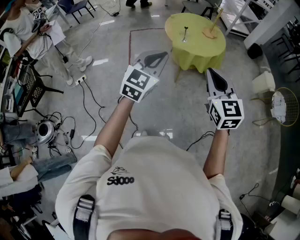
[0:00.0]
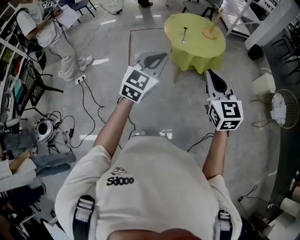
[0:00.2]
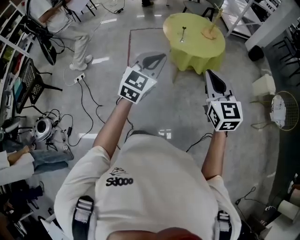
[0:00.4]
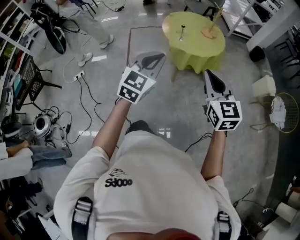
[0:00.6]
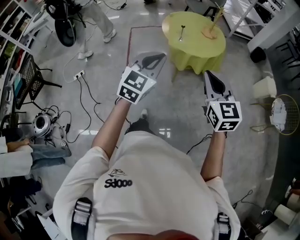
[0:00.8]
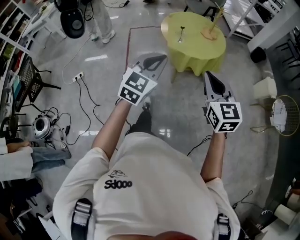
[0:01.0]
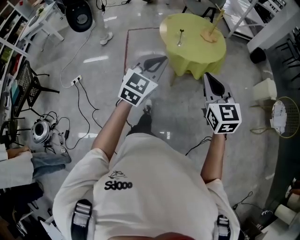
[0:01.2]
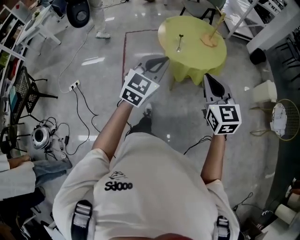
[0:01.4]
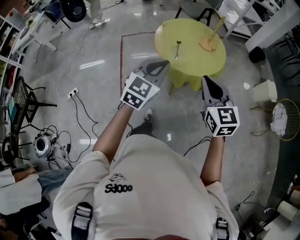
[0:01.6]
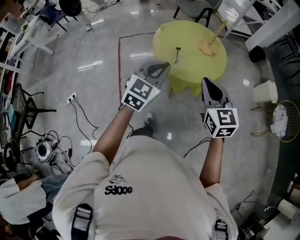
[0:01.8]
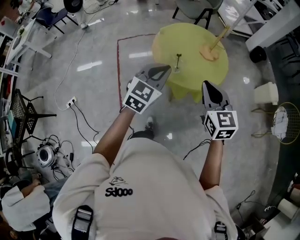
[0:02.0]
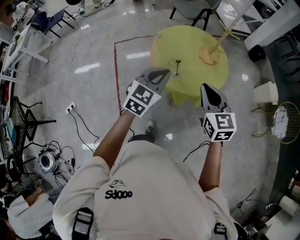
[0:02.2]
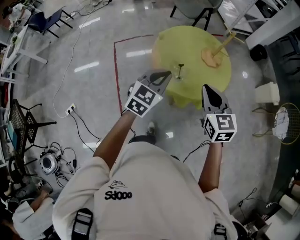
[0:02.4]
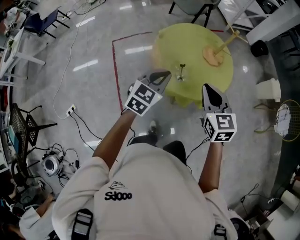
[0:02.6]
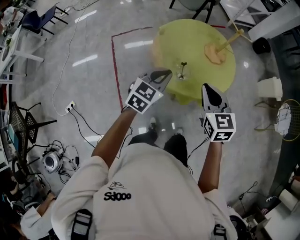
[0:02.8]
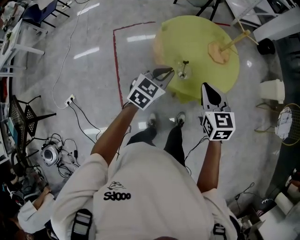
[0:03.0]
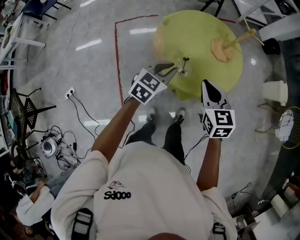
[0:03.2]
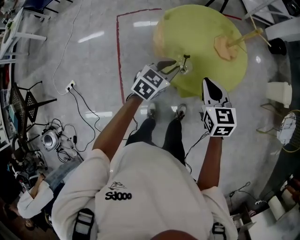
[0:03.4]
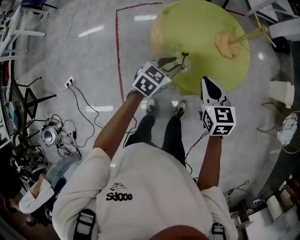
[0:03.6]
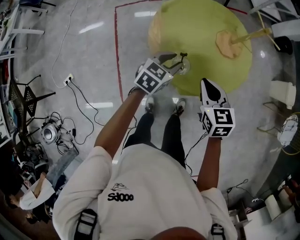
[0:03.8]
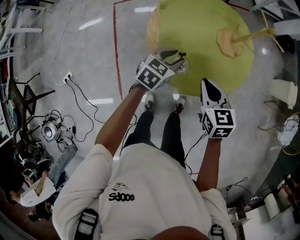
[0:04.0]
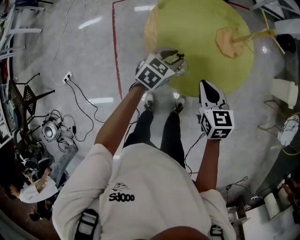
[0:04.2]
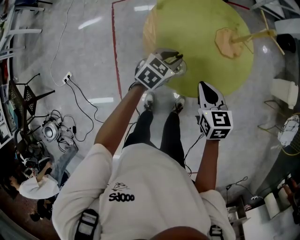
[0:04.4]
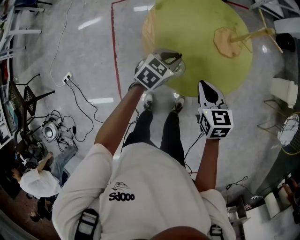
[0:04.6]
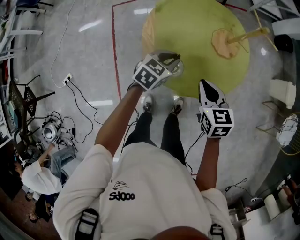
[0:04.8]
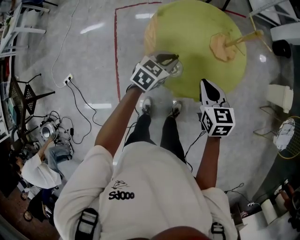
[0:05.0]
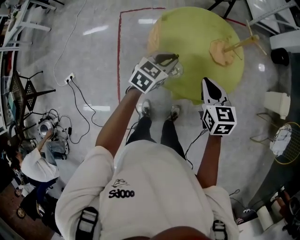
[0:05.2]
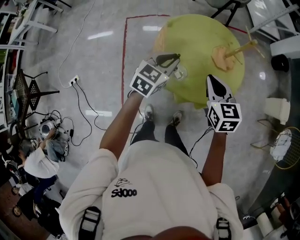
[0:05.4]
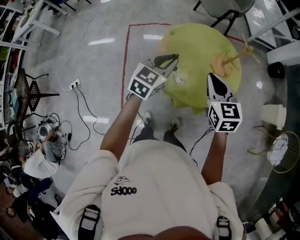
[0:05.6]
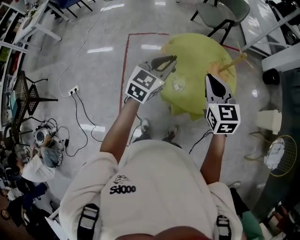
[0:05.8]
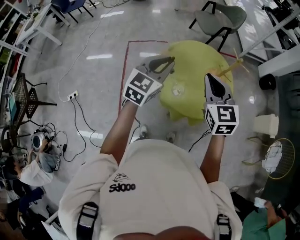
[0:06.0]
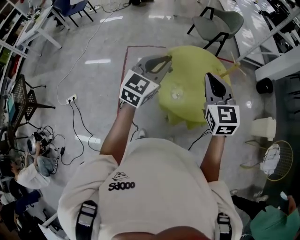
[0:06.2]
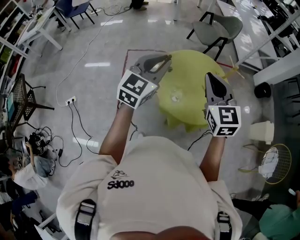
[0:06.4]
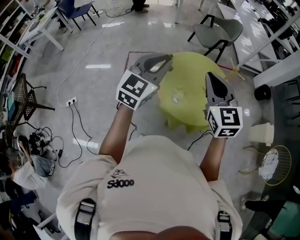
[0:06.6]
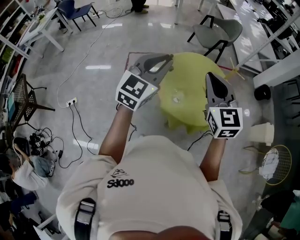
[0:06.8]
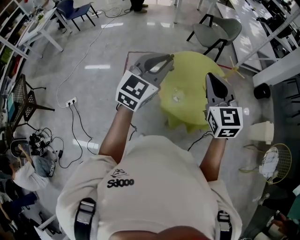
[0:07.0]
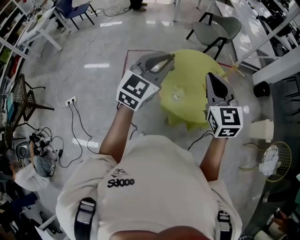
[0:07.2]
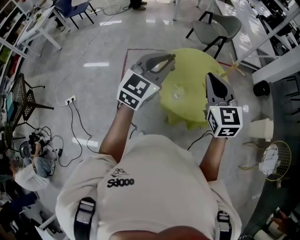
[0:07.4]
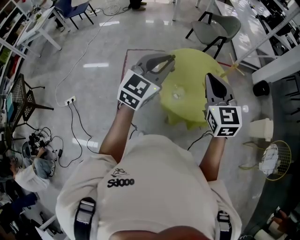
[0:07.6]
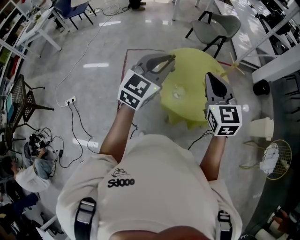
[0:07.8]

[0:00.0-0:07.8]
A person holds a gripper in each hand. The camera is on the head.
0:00.0 to 0:01.6: Both grippers move forward, about 25 cm.
0:01.6 to 0:03.2: Both grippers travel together forward and downward, about 30 cm. The left gripper changes its angle by about 20 degrees.
0:03.2 to 0:04.6: The left gripper is displaced downward and forward by some 15 cm, and opens and closes again, while the right gripper is displaced downward by roughly 10 cm.
0:04.6 to 0:06.2: Both grippers move upward, roughly 30 cm. The right gripper turns by some 40 degrees; the left gripper angles its fingers upward, by approximately 30 degrees.
0:06.2 to 0:07.8: The left gripper ends up approximately 5 cm from where it was.

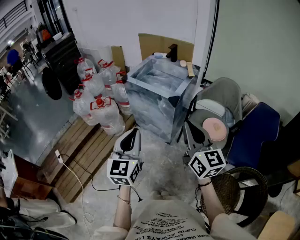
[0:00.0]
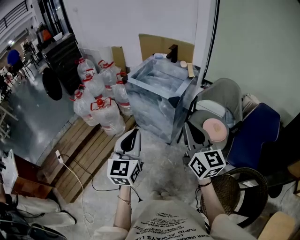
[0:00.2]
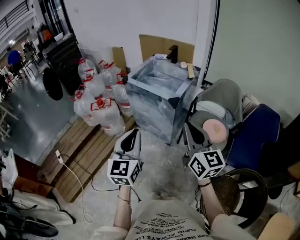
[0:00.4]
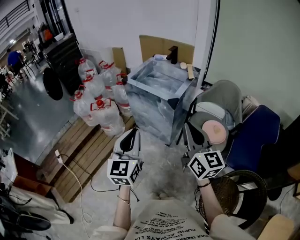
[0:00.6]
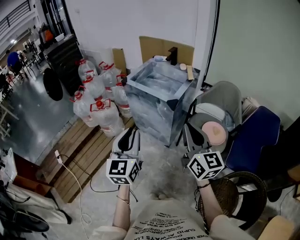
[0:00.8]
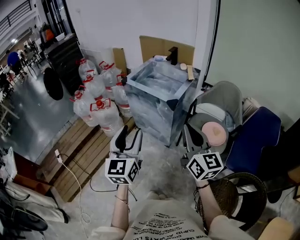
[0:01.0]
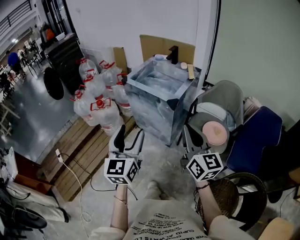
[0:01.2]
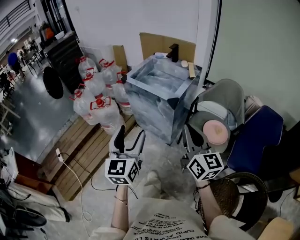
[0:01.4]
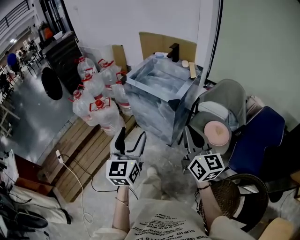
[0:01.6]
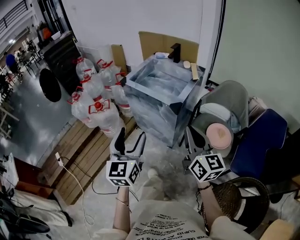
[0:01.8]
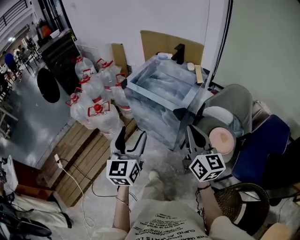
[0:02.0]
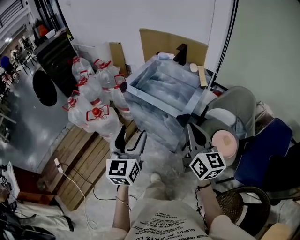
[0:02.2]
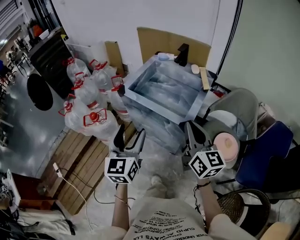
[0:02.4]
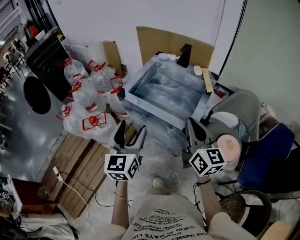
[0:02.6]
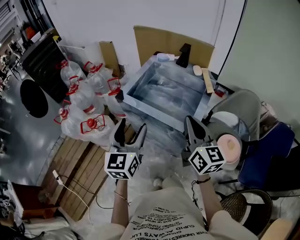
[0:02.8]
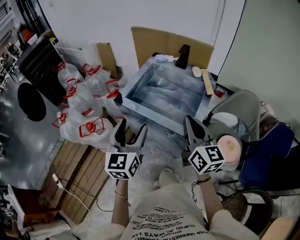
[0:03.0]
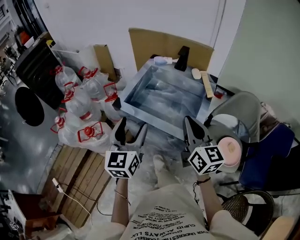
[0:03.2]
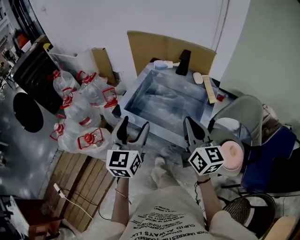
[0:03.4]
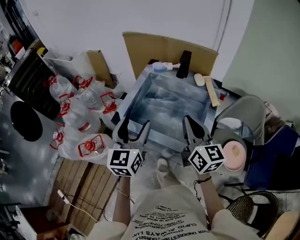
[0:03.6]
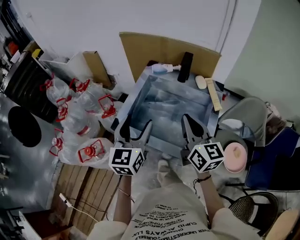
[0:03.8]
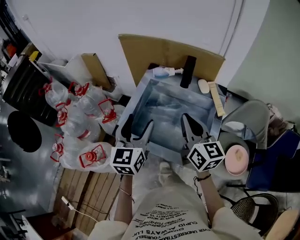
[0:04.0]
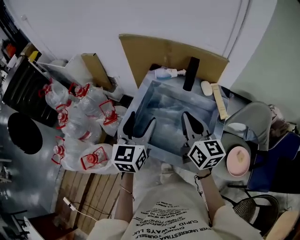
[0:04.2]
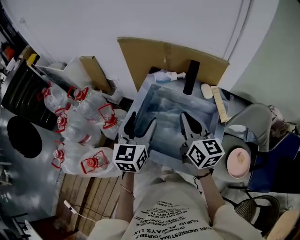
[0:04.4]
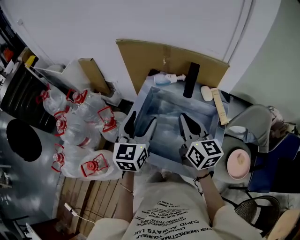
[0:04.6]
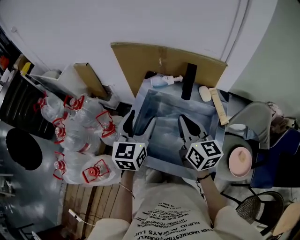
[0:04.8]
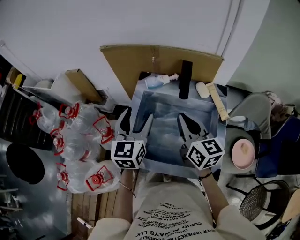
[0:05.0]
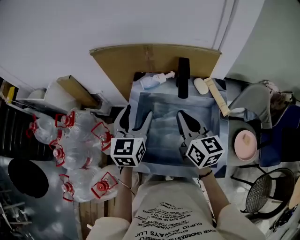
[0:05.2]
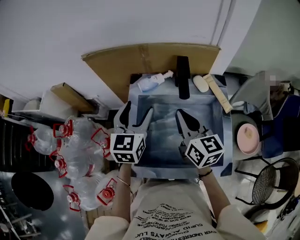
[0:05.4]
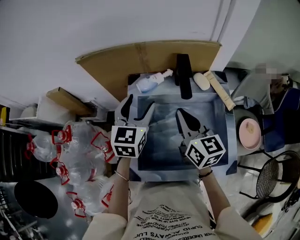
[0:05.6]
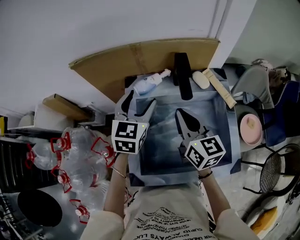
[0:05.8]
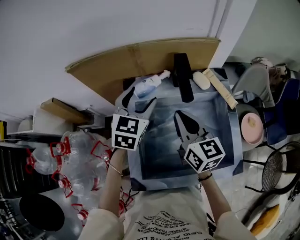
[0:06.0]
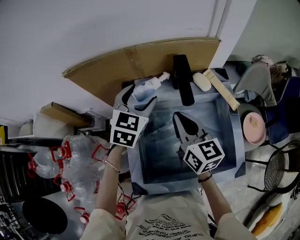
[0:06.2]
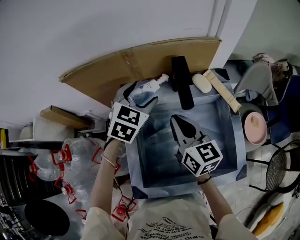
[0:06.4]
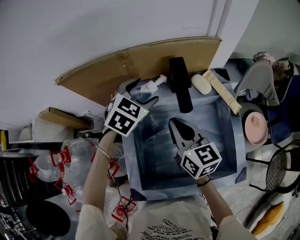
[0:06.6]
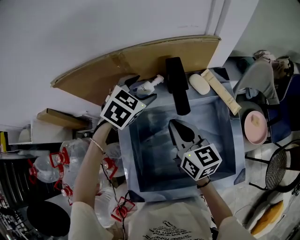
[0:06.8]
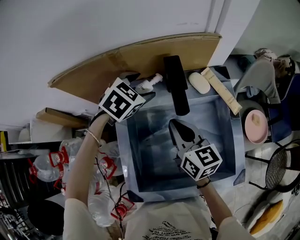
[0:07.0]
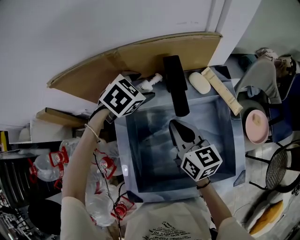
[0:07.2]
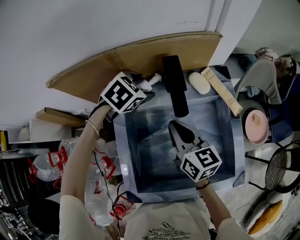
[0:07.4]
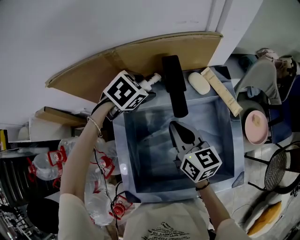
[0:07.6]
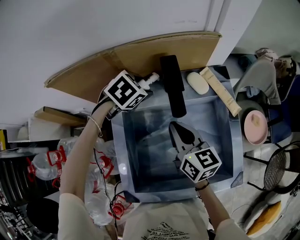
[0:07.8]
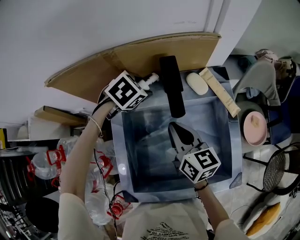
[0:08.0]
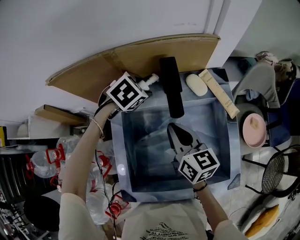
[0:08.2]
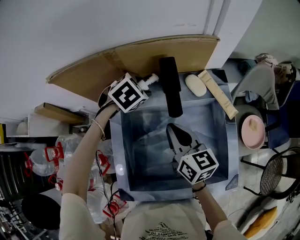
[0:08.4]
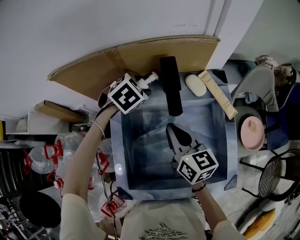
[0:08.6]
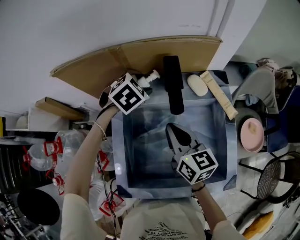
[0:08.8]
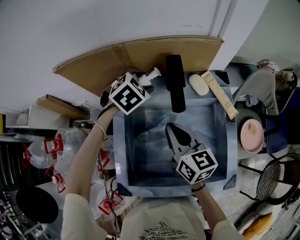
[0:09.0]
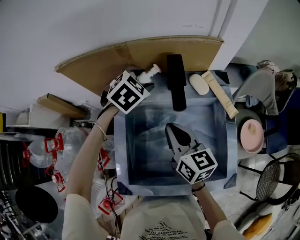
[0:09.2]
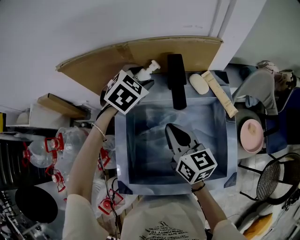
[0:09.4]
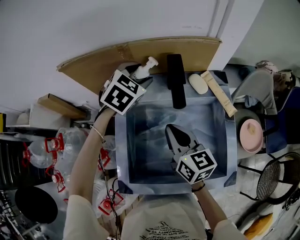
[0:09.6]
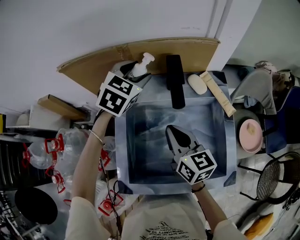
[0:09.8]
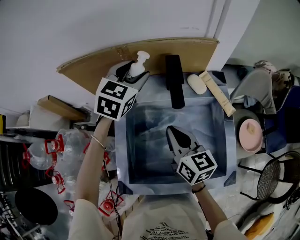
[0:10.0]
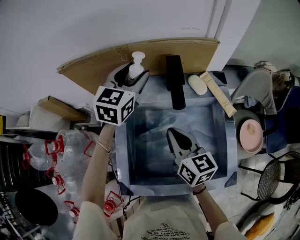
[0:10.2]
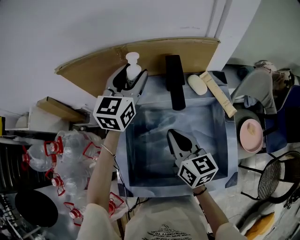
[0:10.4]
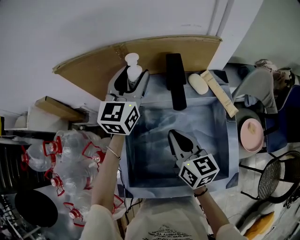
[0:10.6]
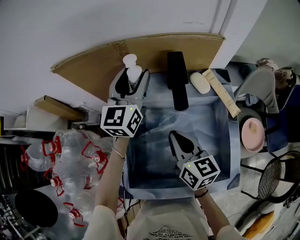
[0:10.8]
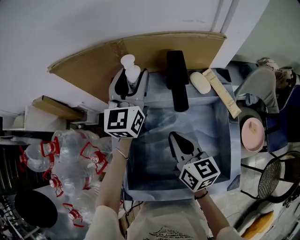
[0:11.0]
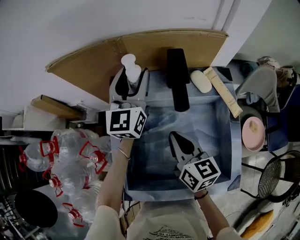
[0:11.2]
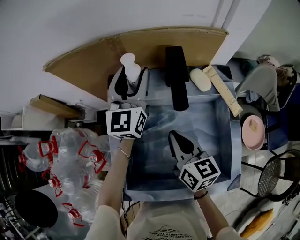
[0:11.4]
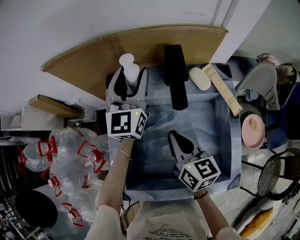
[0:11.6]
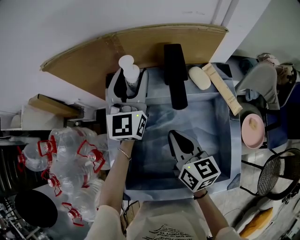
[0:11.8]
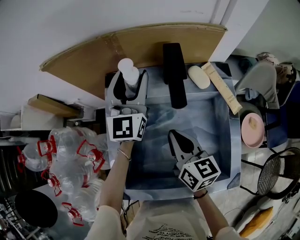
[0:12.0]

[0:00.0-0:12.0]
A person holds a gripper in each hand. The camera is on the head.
0:00.0 to 0:01.6: The right gripper changes place by roughly 5 cm, while the left gripper opens its fingers.
0:01.6 to 0:03.0: Both grippers move forward, approximately 30 cm.
0:03.0 to 0:04.4: Both grippers travel together forward, roughly 25 cm.
0:04.4 to 0:06.0: The right gripper shifts by about 10 cm, and turns by roughly 20 degrees. Meanwhile the left gripper shifts by roughly 25 cm, and turns by about 40 degrees.
0:06.0 to 0:07.6: The right gripper is displaced downward by some 5 cm. Meanwhile the left gripper heads downward and forward, covering approximately 15 cm, and tips its fingers downward by roughly 40 degrees.
0:07.6 to 0:09.0: The grippers stay close to where they were, moving slightly.
0:09.0 to 0:10.4: The left gripper travels upward by some 10 cm, and tilts its fingers about 50 degrees upward.
0:10.4 to 0:12.0: The left gripper turns by approximately 20 degrees.

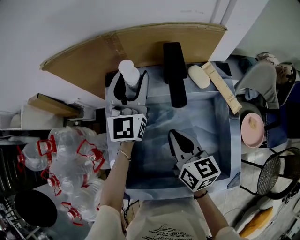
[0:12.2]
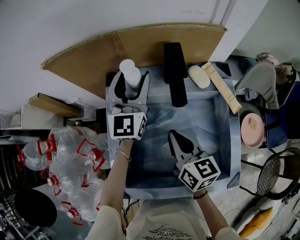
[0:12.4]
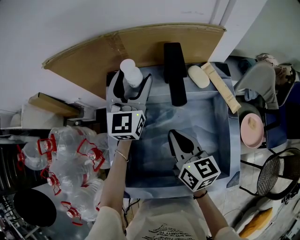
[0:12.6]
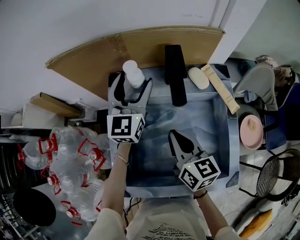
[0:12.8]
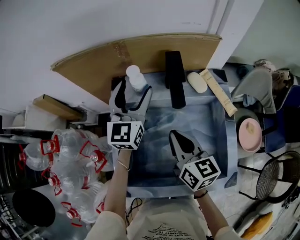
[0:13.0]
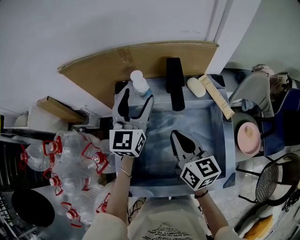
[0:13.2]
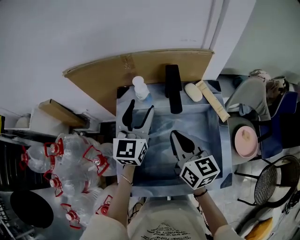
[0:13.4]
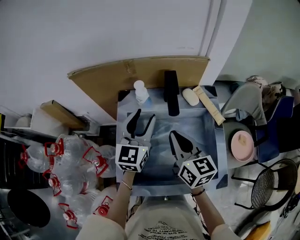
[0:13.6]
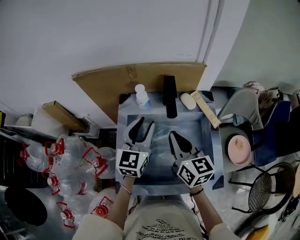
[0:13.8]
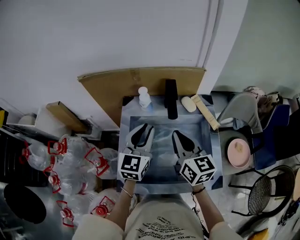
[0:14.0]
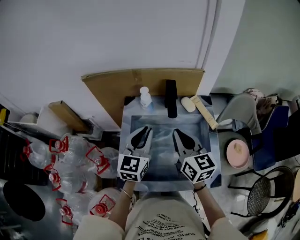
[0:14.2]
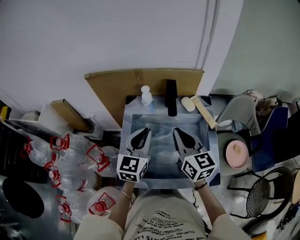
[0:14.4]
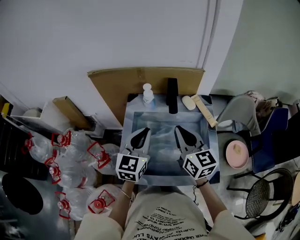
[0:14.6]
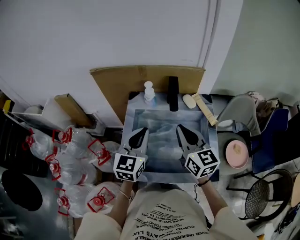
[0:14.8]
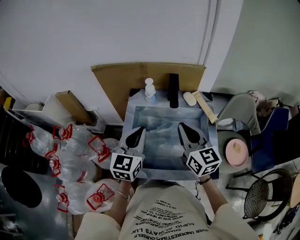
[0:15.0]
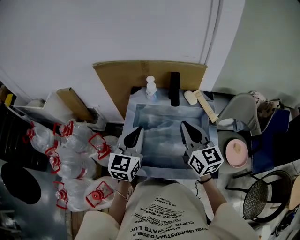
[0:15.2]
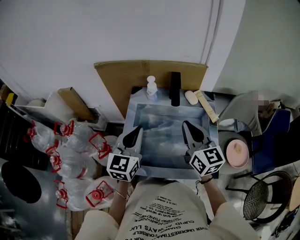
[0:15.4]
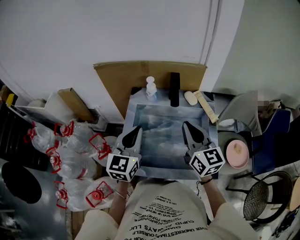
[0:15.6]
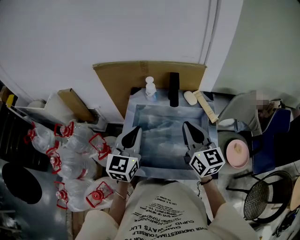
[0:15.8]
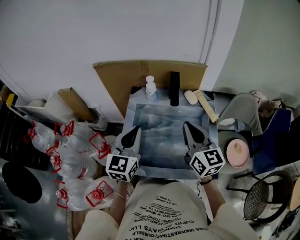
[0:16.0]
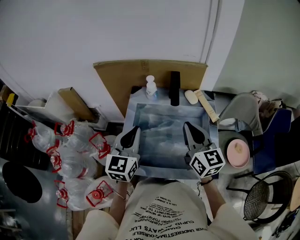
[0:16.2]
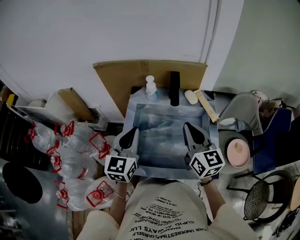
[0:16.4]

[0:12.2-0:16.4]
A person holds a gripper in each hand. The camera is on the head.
0:12.2 to 0:13.6: The left gripper goes approximately 10 cm backward, while the right gripper shifts about 10 cm upward.
0:13.6 to 0:15.0: The left gripper goes some 10 cm backward, and closes up. The right gripper goes some 5 cm upward.
0:15.0 to 0:16.4: The grippers move only a little.
